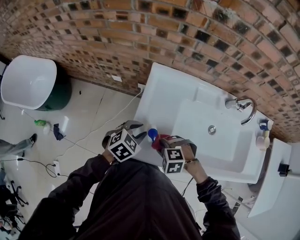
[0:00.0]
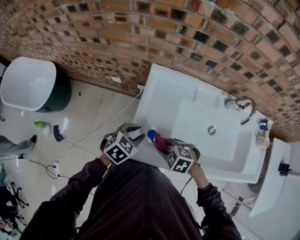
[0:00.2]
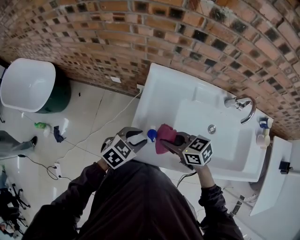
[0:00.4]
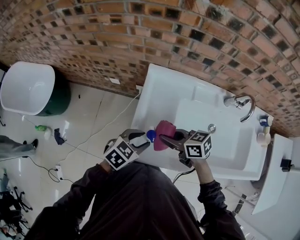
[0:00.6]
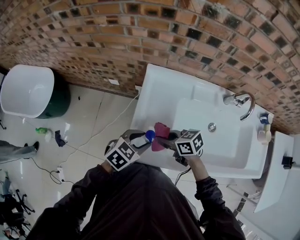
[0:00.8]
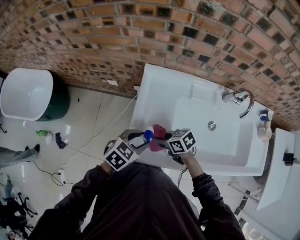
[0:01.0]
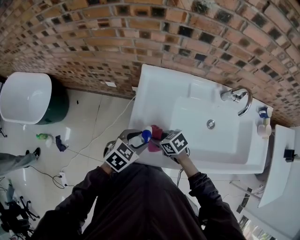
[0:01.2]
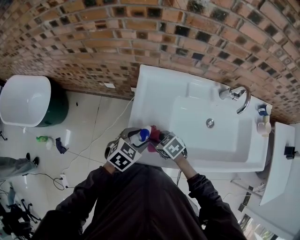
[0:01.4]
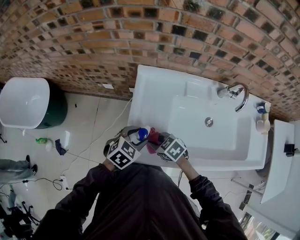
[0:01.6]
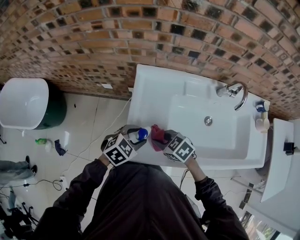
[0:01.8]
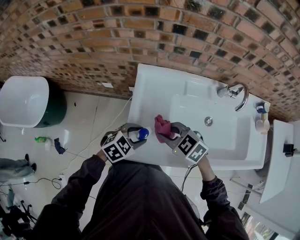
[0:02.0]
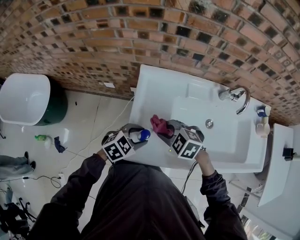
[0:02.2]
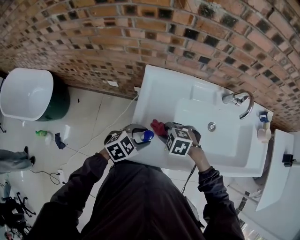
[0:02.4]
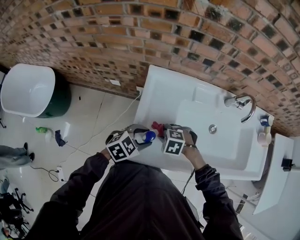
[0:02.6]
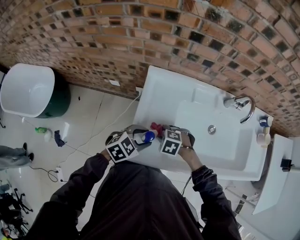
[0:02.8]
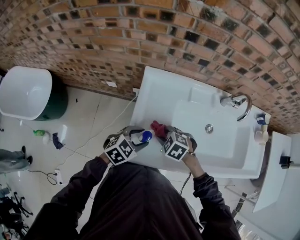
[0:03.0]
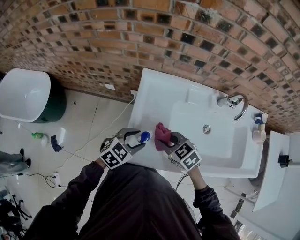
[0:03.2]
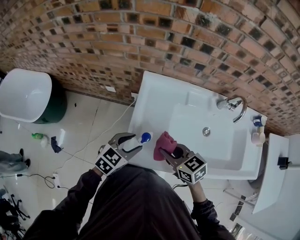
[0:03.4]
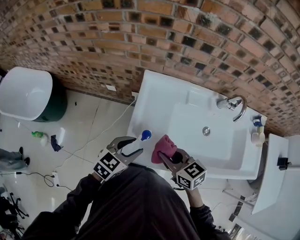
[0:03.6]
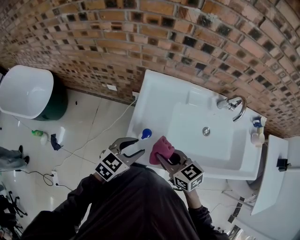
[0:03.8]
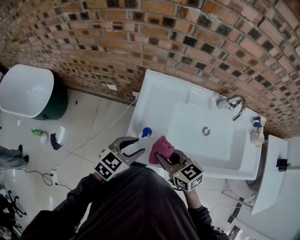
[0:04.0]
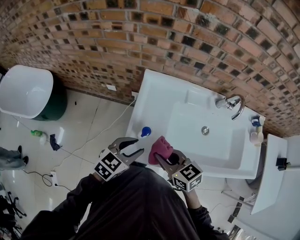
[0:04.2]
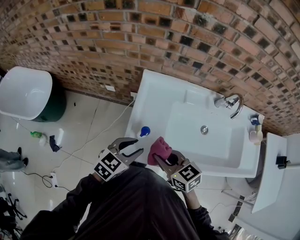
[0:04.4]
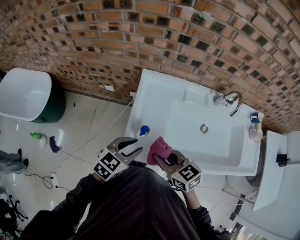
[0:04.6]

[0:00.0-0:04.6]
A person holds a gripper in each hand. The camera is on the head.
0.0 to 1.6 s: The left gripper opens. The right gripper goes upward and returns, about 10 cm each way, and rotates around the line of its fingers by about 50 degrees, clockwise from behind.
1.6 to 3.0 s: The right gripper goes up and down, some 15 cm each way, reversing 2 times, and changes its angle by approximately 30 degrees.
3.0 to 4.6 s: The right gripper travels upward by roughly 10 cm, and tips its fingers upward by approximately 30 degrees. The left gripper shifts about 10 cm upward, and closes its fingers.

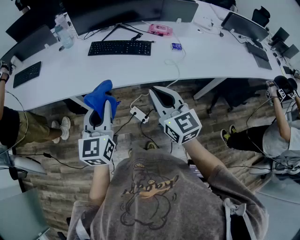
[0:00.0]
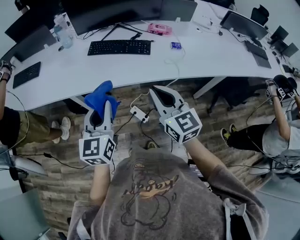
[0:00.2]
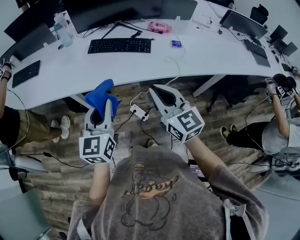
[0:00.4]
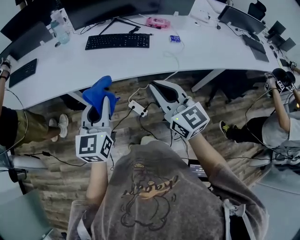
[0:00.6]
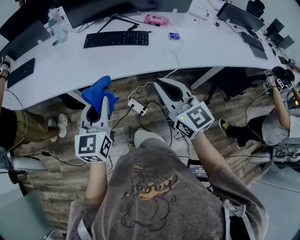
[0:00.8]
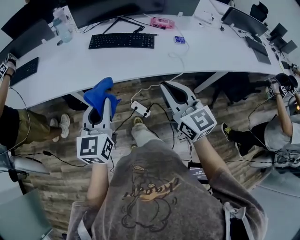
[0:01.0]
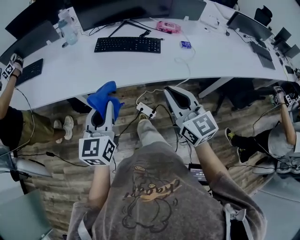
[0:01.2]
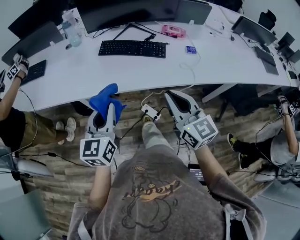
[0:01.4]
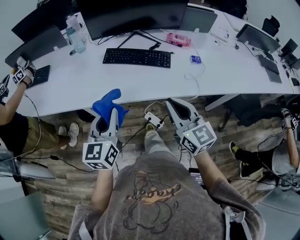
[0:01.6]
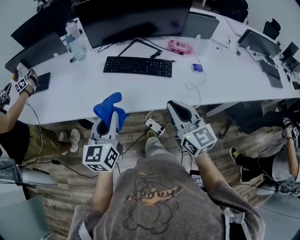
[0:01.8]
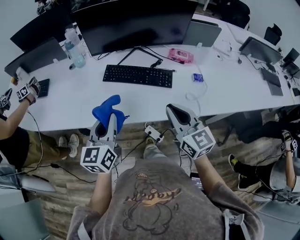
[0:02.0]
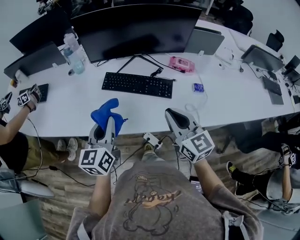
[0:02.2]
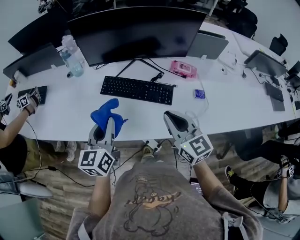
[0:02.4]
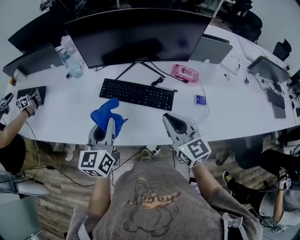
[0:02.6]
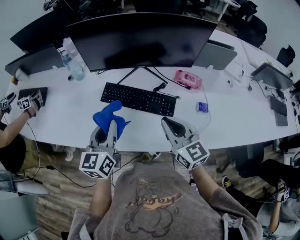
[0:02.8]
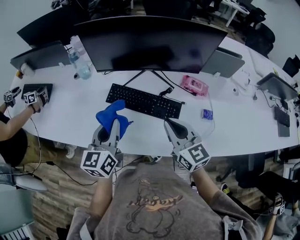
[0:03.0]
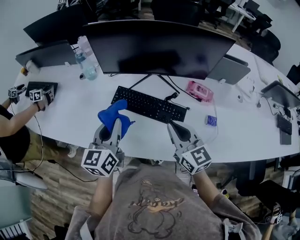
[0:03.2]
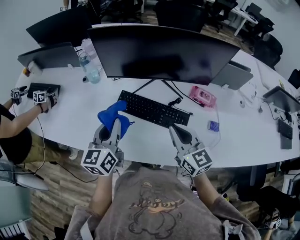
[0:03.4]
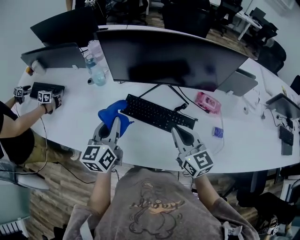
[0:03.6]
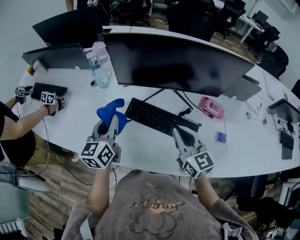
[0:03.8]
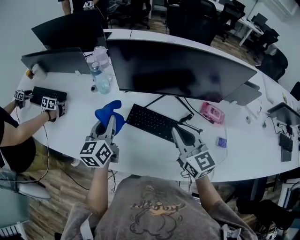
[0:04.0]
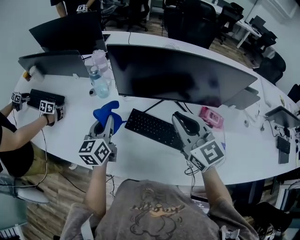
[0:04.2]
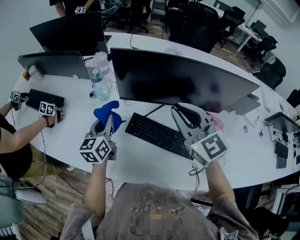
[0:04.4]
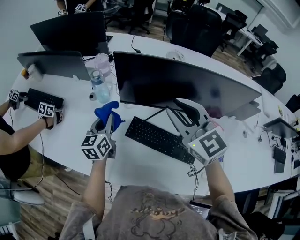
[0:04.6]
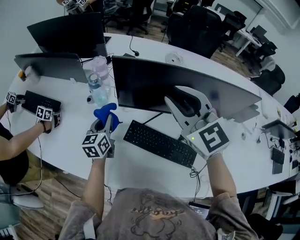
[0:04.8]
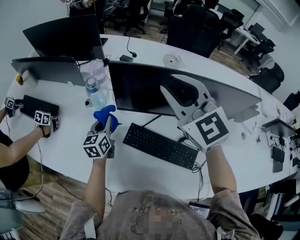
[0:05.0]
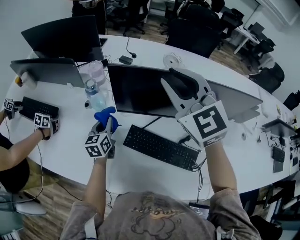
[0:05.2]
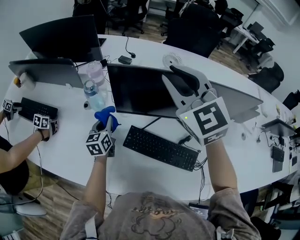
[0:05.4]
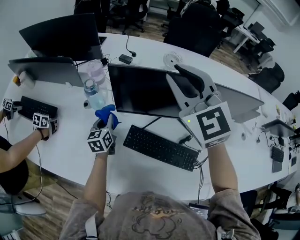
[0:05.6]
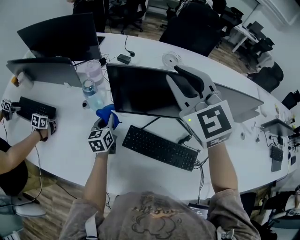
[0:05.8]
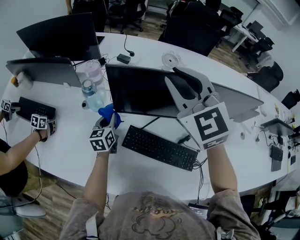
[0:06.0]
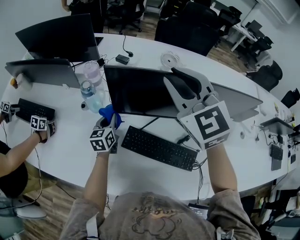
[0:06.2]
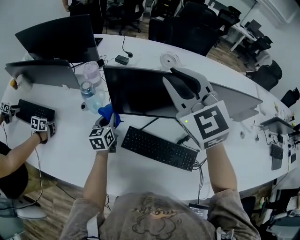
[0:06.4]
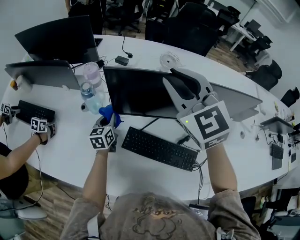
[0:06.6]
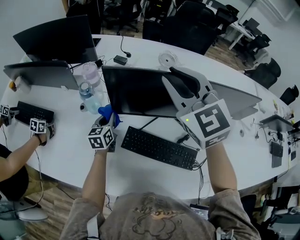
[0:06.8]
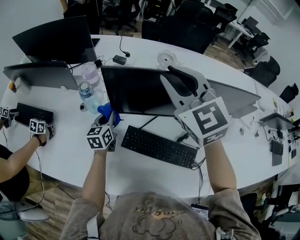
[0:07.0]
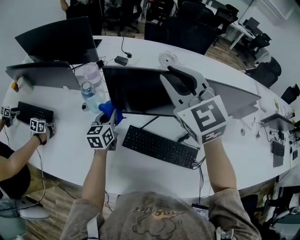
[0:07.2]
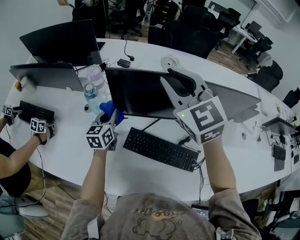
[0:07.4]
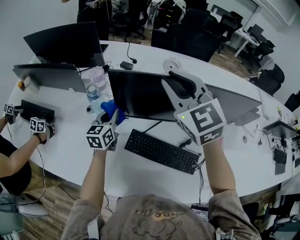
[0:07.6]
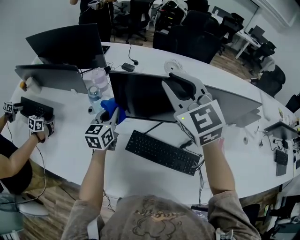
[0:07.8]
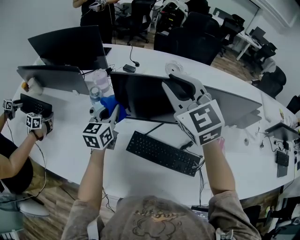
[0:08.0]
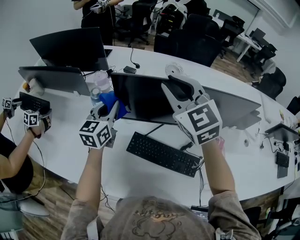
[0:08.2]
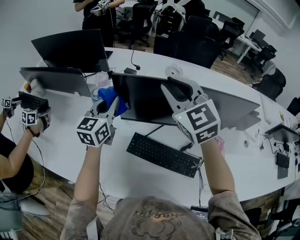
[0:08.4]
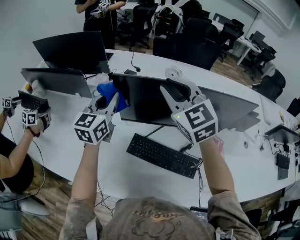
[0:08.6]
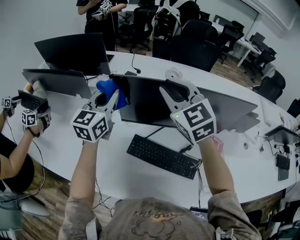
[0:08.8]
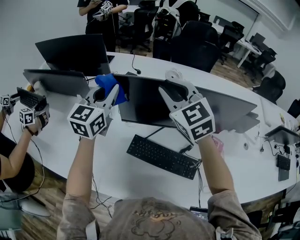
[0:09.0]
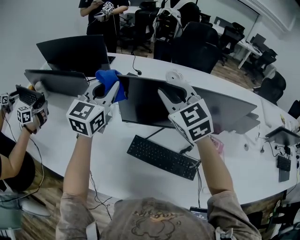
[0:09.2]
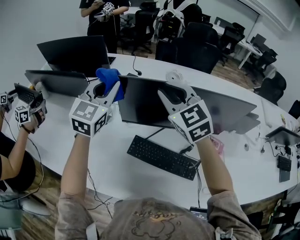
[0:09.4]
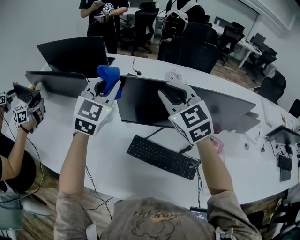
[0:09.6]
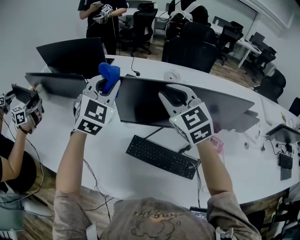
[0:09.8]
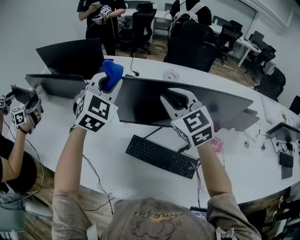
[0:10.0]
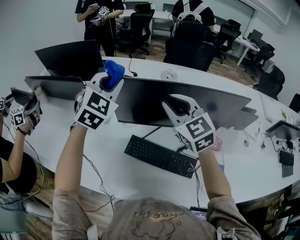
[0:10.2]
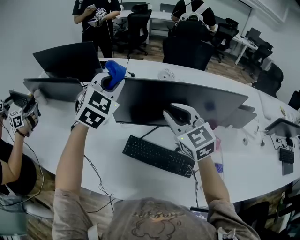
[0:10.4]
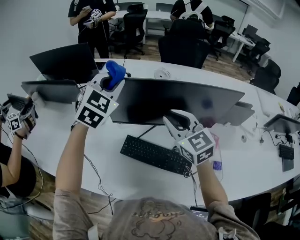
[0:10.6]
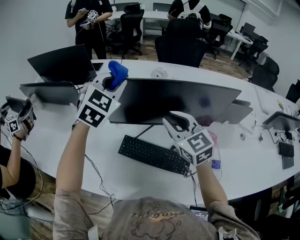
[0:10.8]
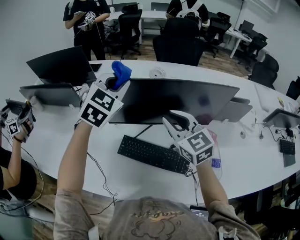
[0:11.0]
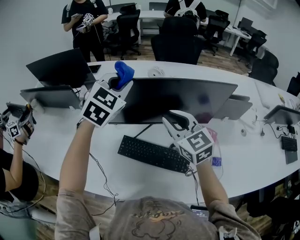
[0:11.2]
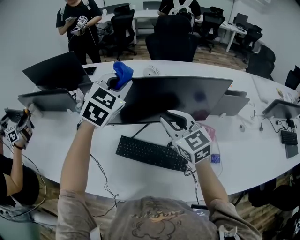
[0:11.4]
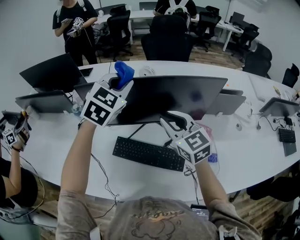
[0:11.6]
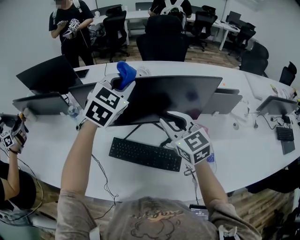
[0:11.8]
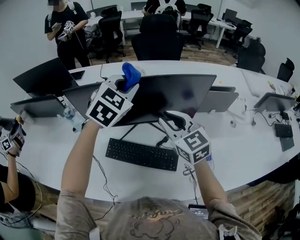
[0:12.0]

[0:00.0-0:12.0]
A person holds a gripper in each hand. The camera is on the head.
0.0 to 1.6 s: The right gripper goes about 5 cm forward; the left gripper goes about 10 cm forward and to the left.
1.6 to 3.0 s: Both grippers move forward, approximately 25 cm.
3.0 to 4.4 s: The right gripper travels forward, upward and to the left by roughly 25 cm, and changes its angle by approximately 20 degrees, while the left gripper travels forward and to the left by about 25 cm.
4.4 to 6.0 s: The right gripper heads forward and upward, covering approximately 15 cm, and changes its angle by approximately 20 degrees, while the left gripper heads forward and downward, covering approximately 15 cm.
6.0 to 7.6 s: The left gripper moves upward, roughly 10 cm.
7.6 to 9.0 s: The left gripper moves upward, about 20 cm, and changes its angle by roughly 20 degrees.
9.0 to 10.4 s: The right gripper travels backward and to the right by about 10 cm; the left gripper travels to the right by about 10 cm, and rotates roughly 40 degrees.
10.4 to 12.0 s: The right gripper moves to the right, roughly 10 cm; the left gripper travels to the right by some 20 cm.

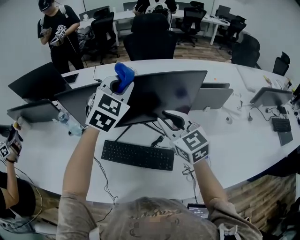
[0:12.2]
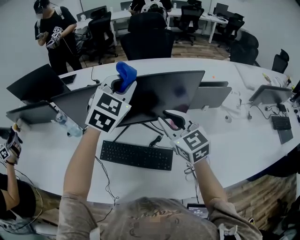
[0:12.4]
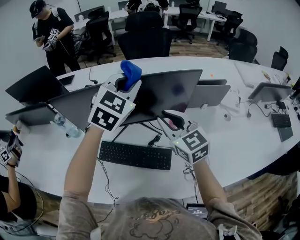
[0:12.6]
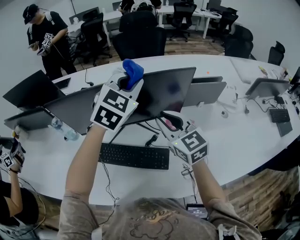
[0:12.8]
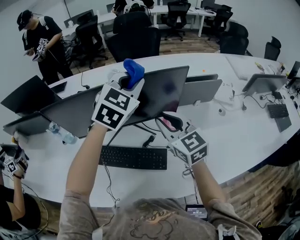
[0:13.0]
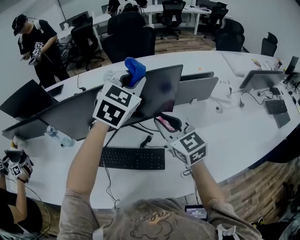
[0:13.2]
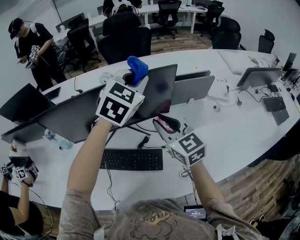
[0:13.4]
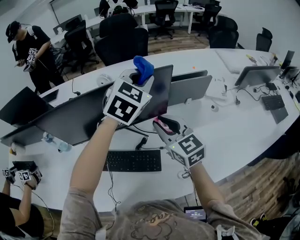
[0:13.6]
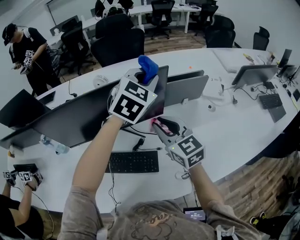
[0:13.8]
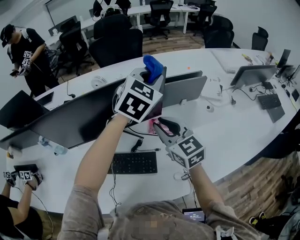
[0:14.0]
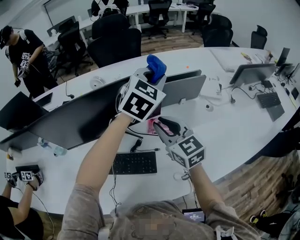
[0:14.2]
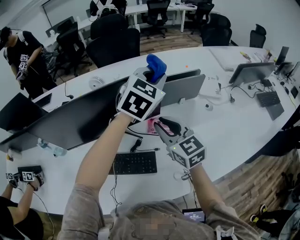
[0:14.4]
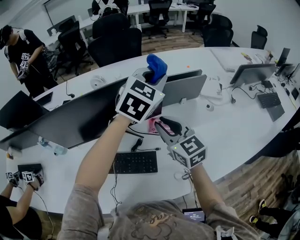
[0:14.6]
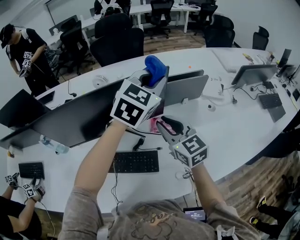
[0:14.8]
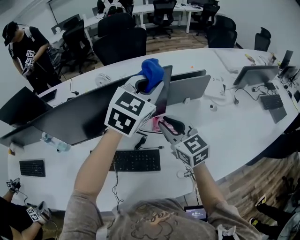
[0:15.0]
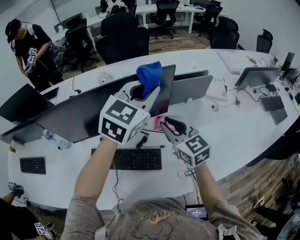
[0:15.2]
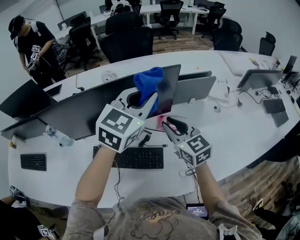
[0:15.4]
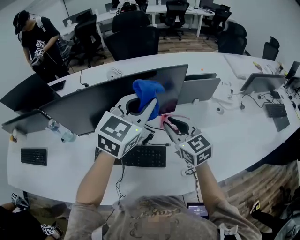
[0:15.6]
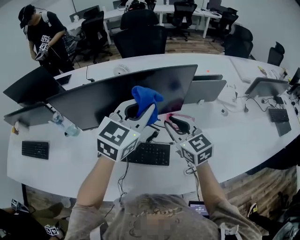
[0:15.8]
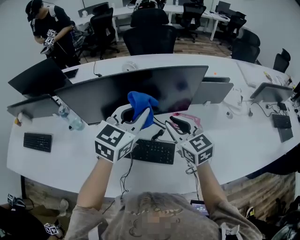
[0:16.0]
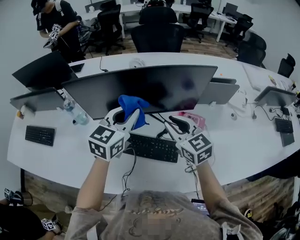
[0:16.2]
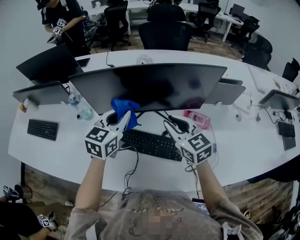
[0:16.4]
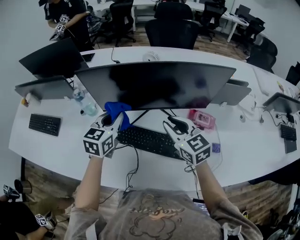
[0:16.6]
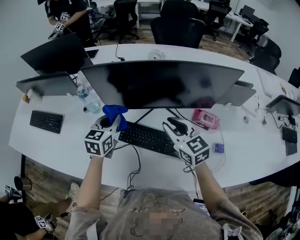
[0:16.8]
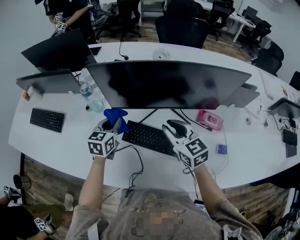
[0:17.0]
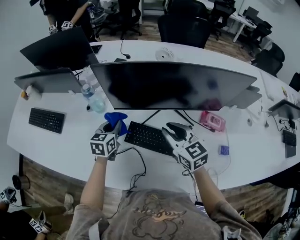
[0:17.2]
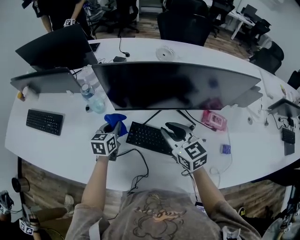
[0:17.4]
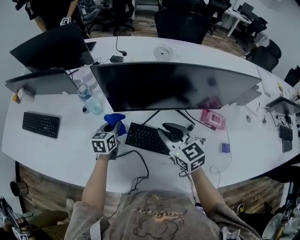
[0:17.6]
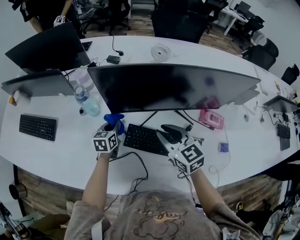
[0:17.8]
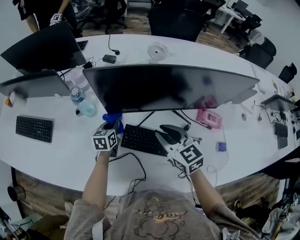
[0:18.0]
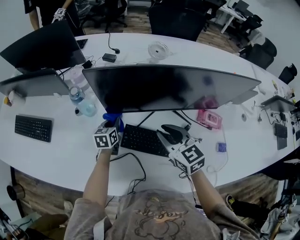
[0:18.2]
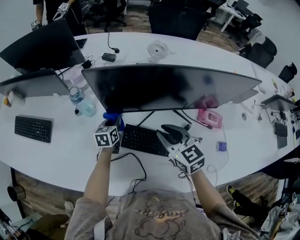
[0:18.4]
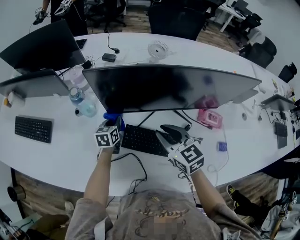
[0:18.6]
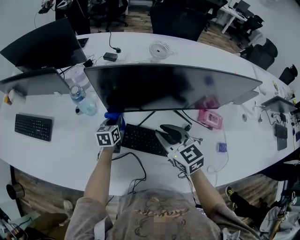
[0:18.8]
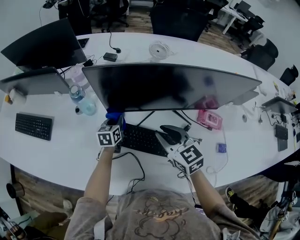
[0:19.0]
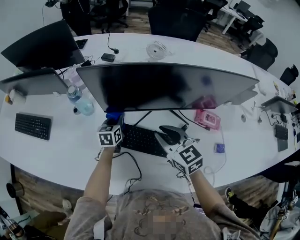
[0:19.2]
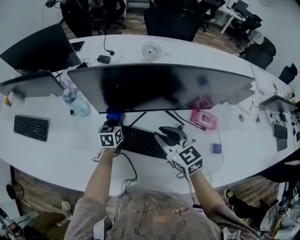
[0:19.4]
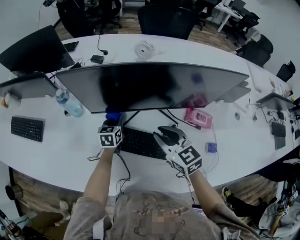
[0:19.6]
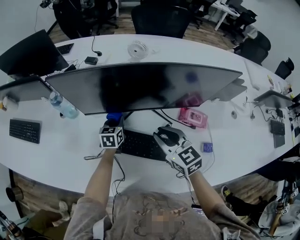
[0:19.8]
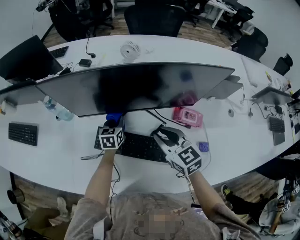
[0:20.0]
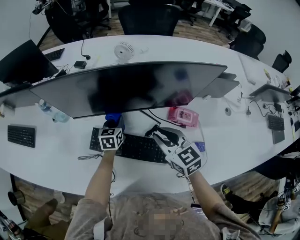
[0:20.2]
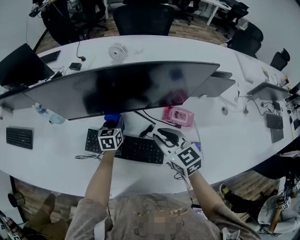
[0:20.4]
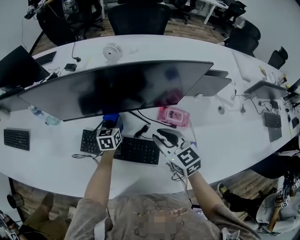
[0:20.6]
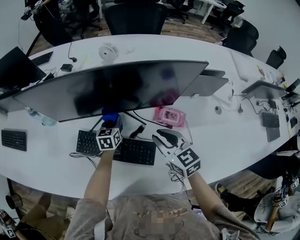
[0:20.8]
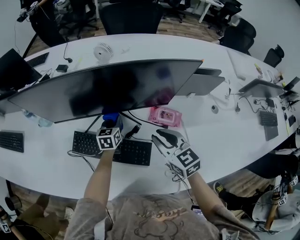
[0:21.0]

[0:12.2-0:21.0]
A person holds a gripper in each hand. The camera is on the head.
12.2 to 13.6 s: The right gripper shifts approximately 10 cm to the right; the left gripper heads to the right, covering about 20 cm.
13.6 to 15.2 s: The left gripper goes approximately 5 cm backward.
15.2 to 16.6 s: The right gripper goes some 20 cm to the left. The left gripper shifts some 40 cm to the left and downward, and swivels roughly 40 degrees.
16.6 to 18.0 s: The left gripper shifts approximately 25 cm downward, to the left and forward, and turns by roughly 20 degrees; the right gripper heads to the left and downward, covering some 10 cm.
18.0 to 19.6 s: The grippers both shift to the right by about 10 cm.
19.6 to 21.0 s: The two grippers go about 20 cm to the right.
